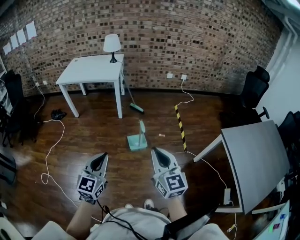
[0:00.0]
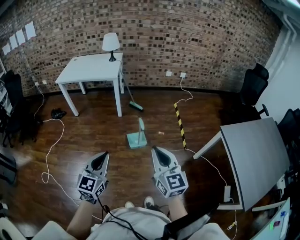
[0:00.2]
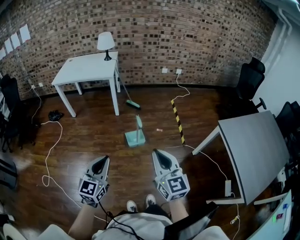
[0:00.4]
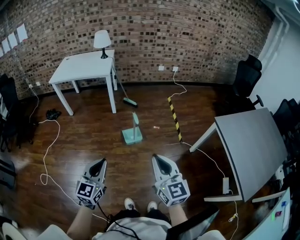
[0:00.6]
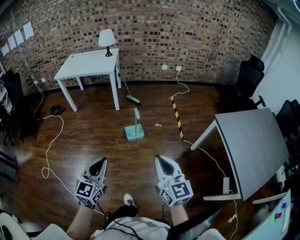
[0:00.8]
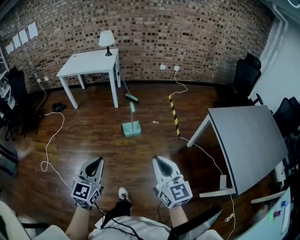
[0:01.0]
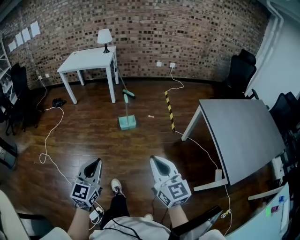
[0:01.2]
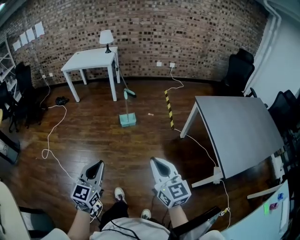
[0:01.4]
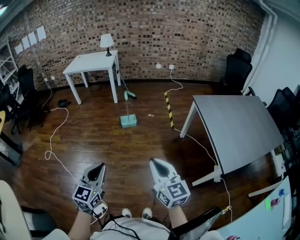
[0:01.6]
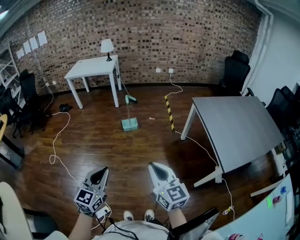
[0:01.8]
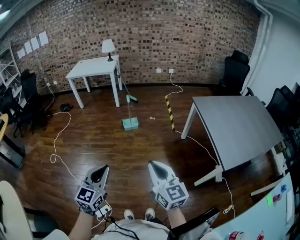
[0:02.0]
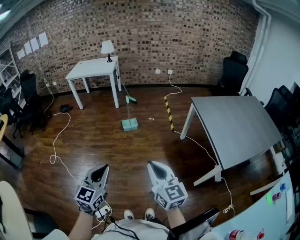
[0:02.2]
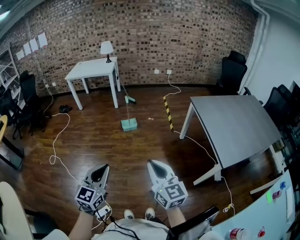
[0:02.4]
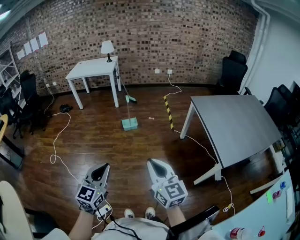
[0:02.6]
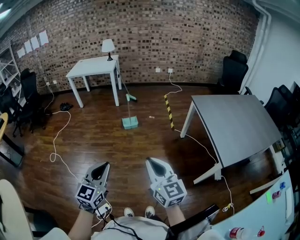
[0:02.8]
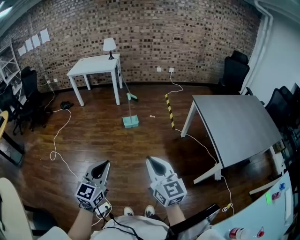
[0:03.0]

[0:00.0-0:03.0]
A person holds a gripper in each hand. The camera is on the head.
0:00.0 to 0:01.6: The two grippers travel together, backward and to the right, about 50 cm.
0:01.6 to 0:03.0: Both grippers move backward, approximately 5 cm.

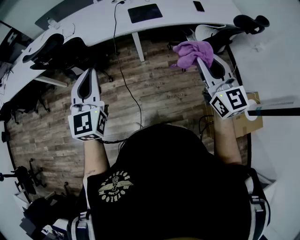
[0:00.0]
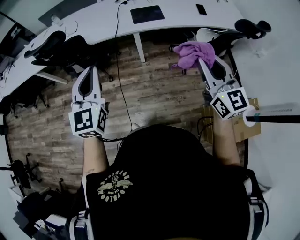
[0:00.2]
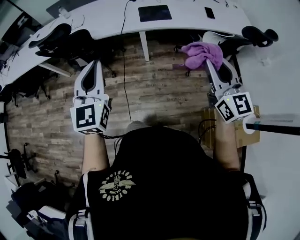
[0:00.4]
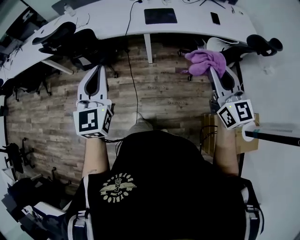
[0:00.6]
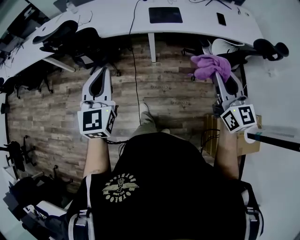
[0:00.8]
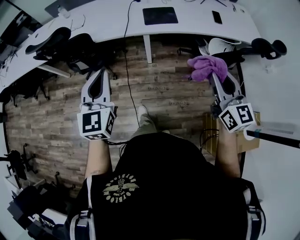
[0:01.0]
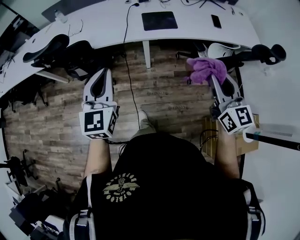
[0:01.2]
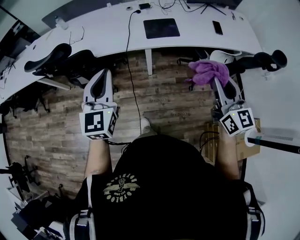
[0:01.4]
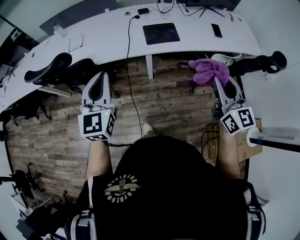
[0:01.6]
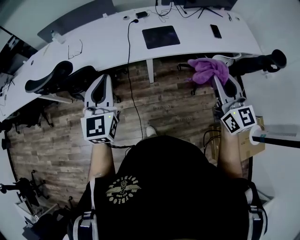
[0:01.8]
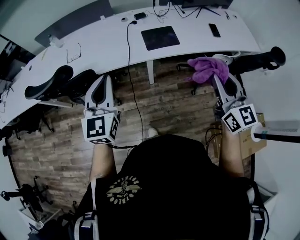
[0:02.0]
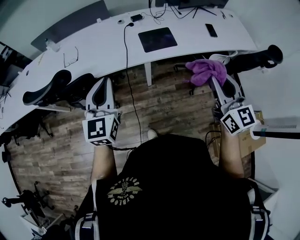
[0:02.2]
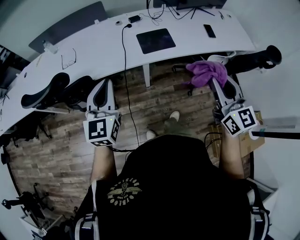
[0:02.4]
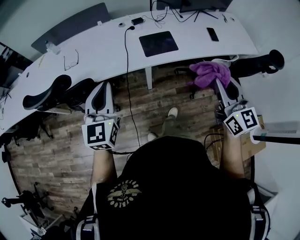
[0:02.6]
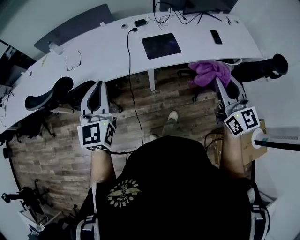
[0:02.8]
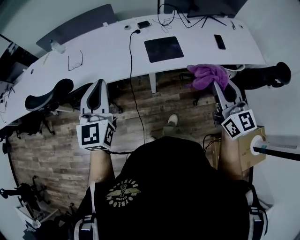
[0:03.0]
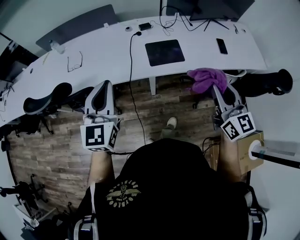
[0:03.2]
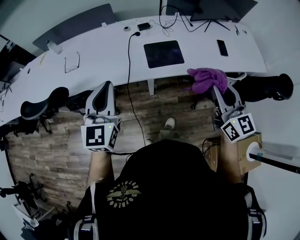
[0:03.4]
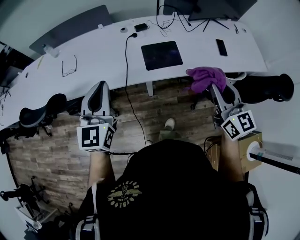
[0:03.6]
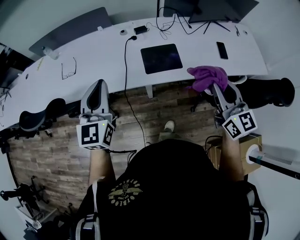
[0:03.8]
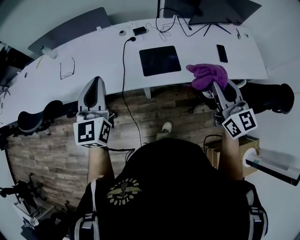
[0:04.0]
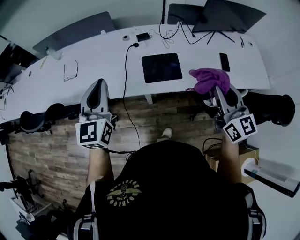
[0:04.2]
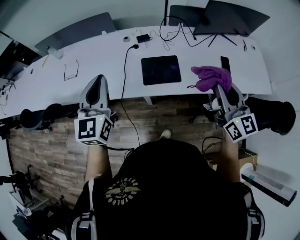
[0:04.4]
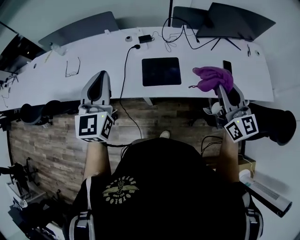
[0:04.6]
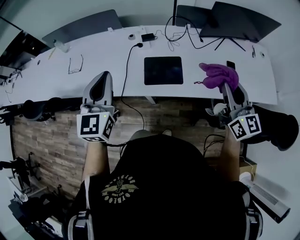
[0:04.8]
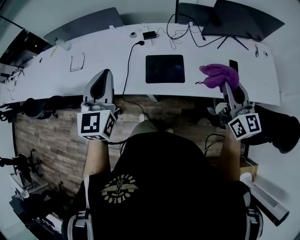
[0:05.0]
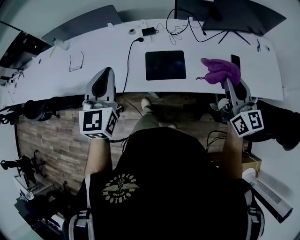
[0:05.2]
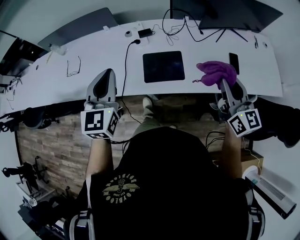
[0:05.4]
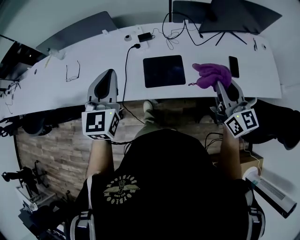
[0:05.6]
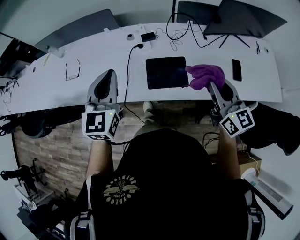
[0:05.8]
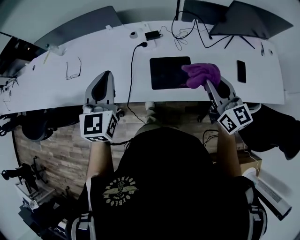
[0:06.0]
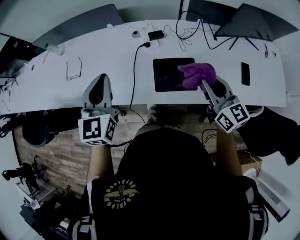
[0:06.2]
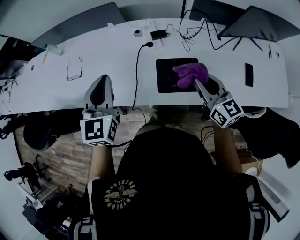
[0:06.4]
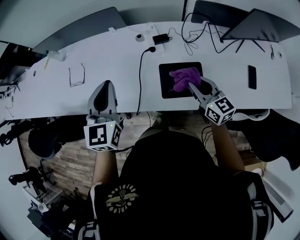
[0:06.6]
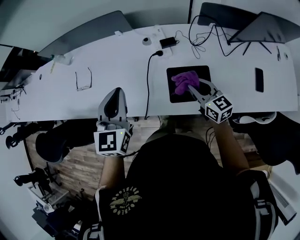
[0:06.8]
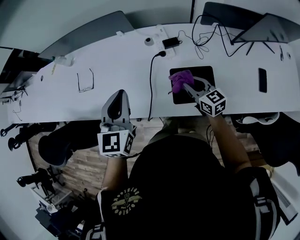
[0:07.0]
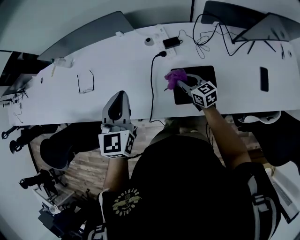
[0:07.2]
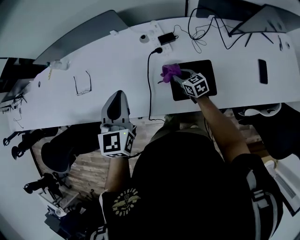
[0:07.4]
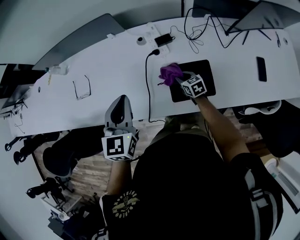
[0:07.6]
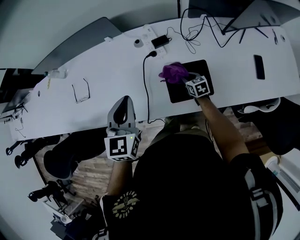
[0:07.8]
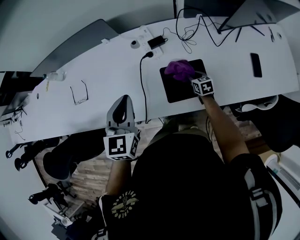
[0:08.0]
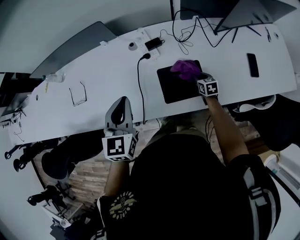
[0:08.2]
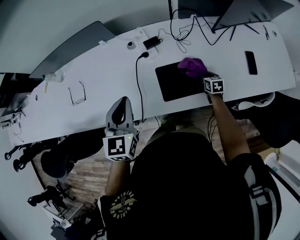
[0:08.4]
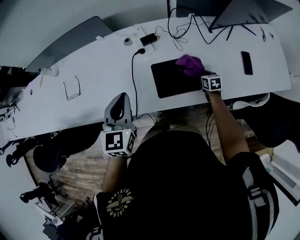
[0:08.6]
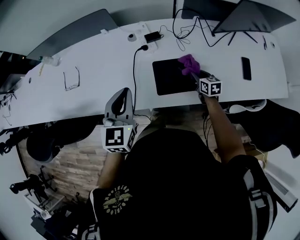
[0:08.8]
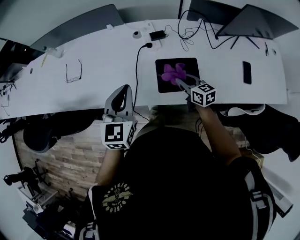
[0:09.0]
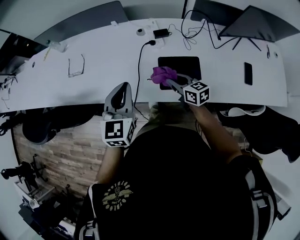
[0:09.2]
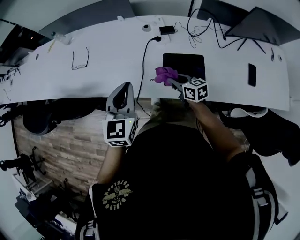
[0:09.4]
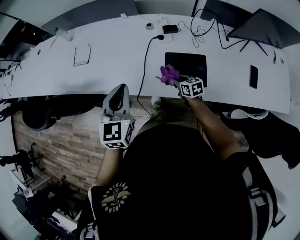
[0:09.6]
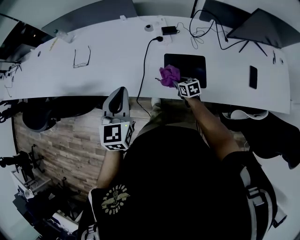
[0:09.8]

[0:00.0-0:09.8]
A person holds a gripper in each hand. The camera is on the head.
0:00.0 to 0:01.4: The grippers both shift forward by roughly 15 cm.
0:01.4 to 0:02.8: The two grippers go roughly 10 cm forward.
0:02.8 to 0:04.2: The grippers both shift forward and to the right by some 20 cm.
0:04.2 to 0:05.6: The right gripper shifts about 10 cm forward, to the right and downward. Meanwhile the left gripper travels to the right and forward by about 10 cm.
0:05.6 to 0:07.0: The right gripper goes approximately 40 cm downward, forward and to the left, and rotates approximately 30 degrees, while the left gripper shifts some 15 cm forward, to the left and downward.
0:07.0 to 0:08.4: The right gripper goes some 25 cm to the right and downward, and turns by approximately 40 degrees. The left gripper travels to the right by some 5 cm.
0:08.4 to 0:09.8: The right gripper goes some 20 cm to the left, and changes its angle by approximately 30 degrees, while the left gripper moves backward and to the left, some 10 cm.

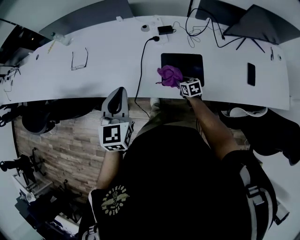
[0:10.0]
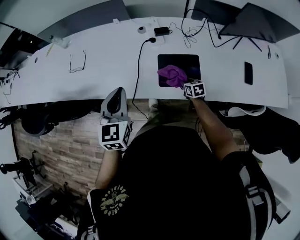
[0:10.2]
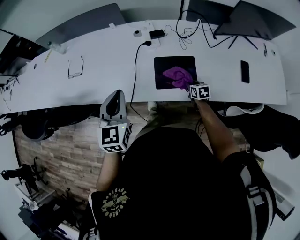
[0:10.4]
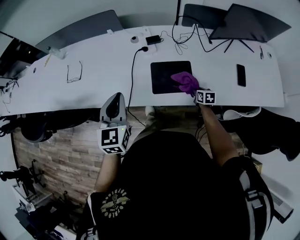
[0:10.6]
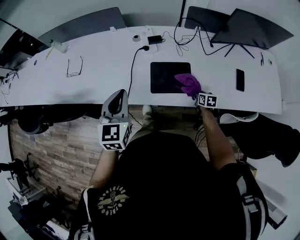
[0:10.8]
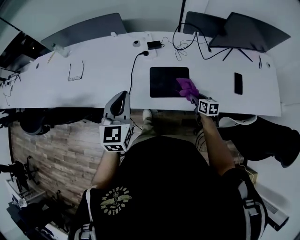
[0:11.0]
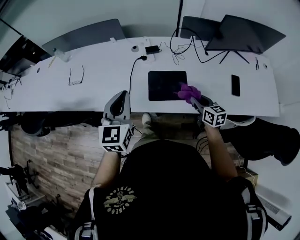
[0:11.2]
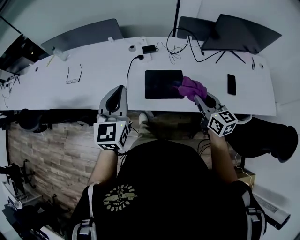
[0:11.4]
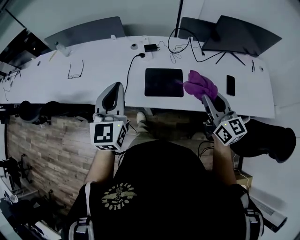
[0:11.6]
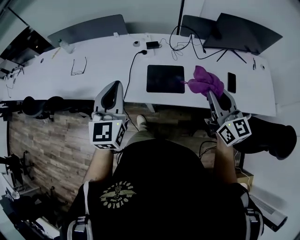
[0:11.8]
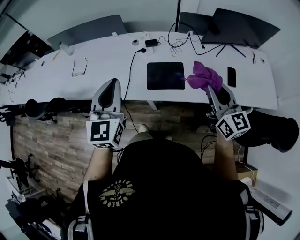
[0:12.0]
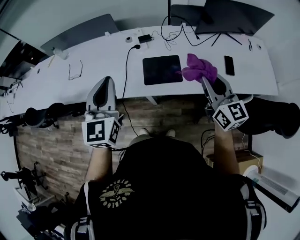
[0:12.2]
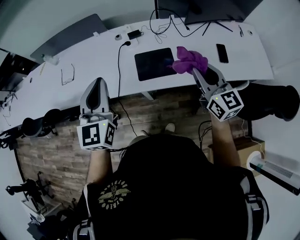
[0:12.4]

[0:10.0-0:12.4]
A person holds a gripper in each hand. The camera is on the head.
0:10.0 to 0:11.2: The left gripper is displaced to the right by about 10 cm. Meanwhile the right gripper goes some 25 cm upward, to the right and backward, and changes its angle by some 20 degrees.
0:11.2 to 0:12.4: The right gripper moves upward, about 25 cm, and swivels some 30 degrees; the left gripper shifts some 10 cm upward and backward.

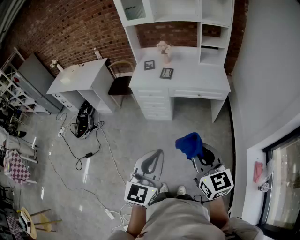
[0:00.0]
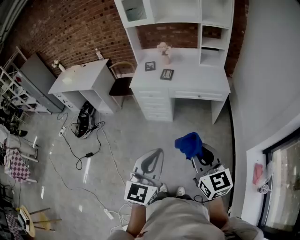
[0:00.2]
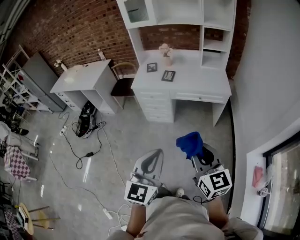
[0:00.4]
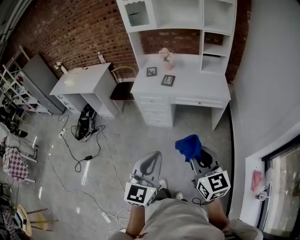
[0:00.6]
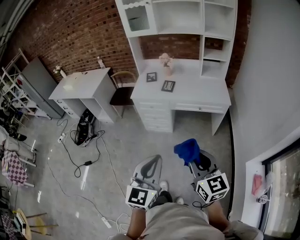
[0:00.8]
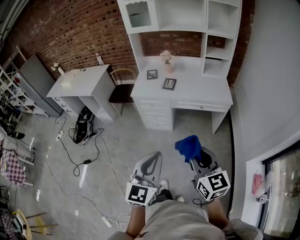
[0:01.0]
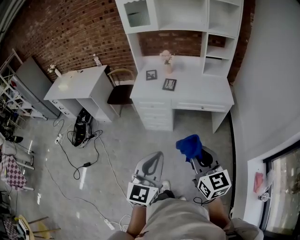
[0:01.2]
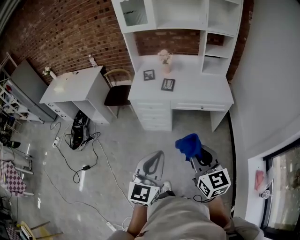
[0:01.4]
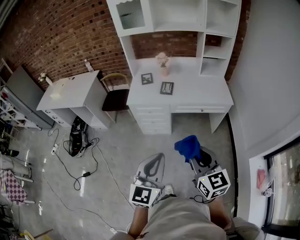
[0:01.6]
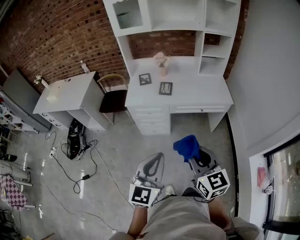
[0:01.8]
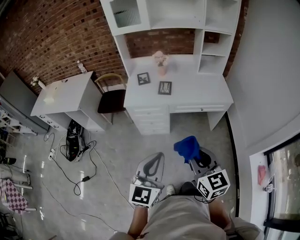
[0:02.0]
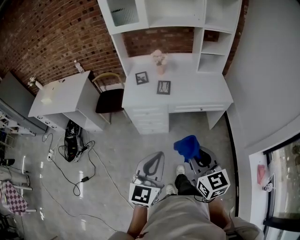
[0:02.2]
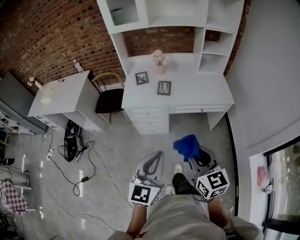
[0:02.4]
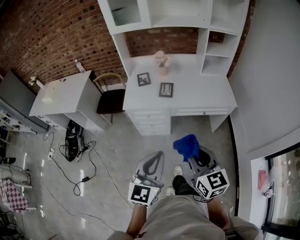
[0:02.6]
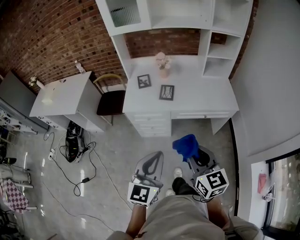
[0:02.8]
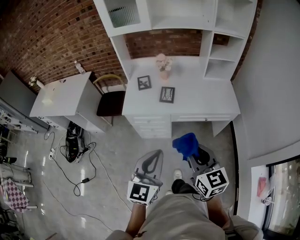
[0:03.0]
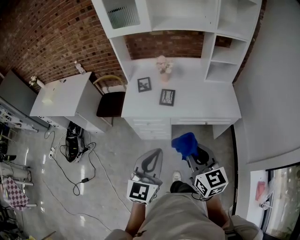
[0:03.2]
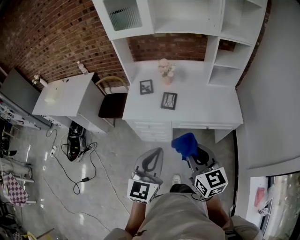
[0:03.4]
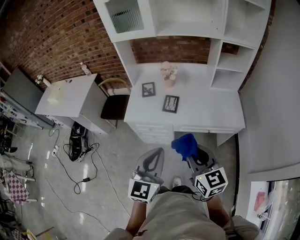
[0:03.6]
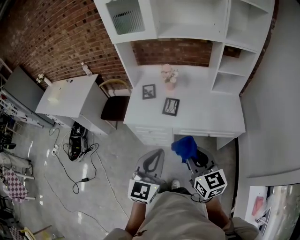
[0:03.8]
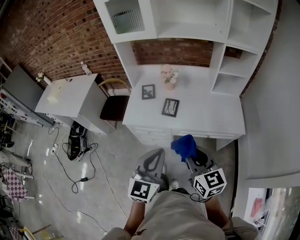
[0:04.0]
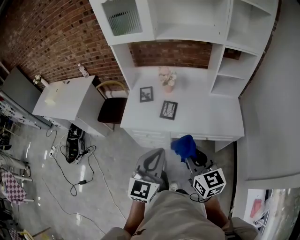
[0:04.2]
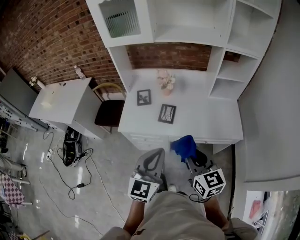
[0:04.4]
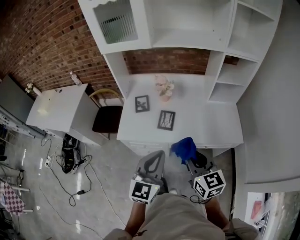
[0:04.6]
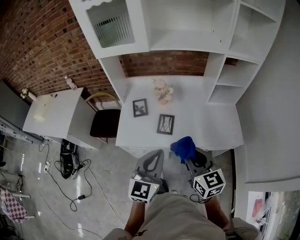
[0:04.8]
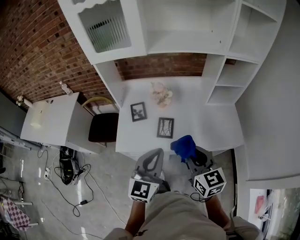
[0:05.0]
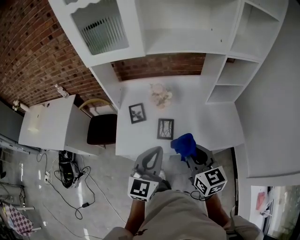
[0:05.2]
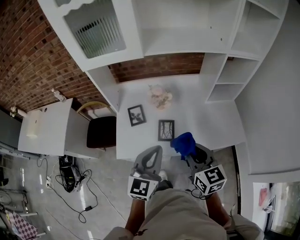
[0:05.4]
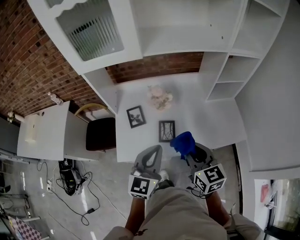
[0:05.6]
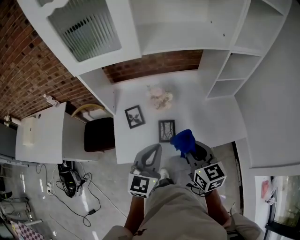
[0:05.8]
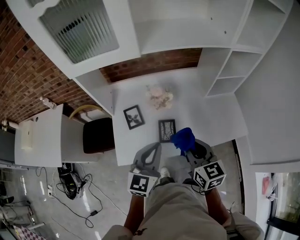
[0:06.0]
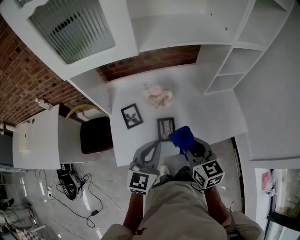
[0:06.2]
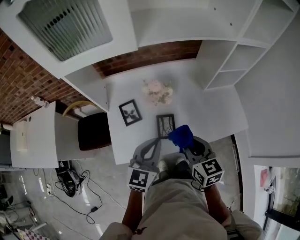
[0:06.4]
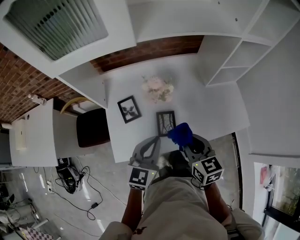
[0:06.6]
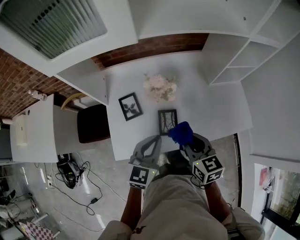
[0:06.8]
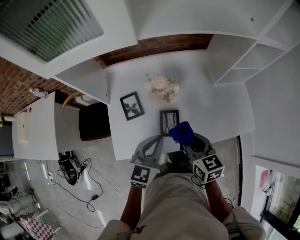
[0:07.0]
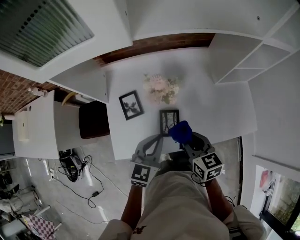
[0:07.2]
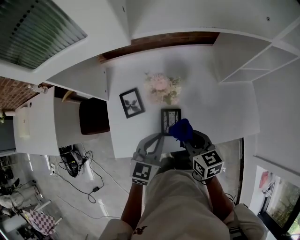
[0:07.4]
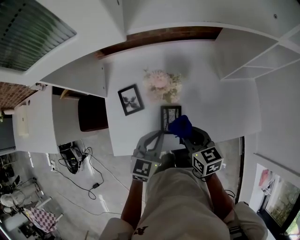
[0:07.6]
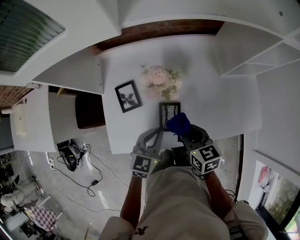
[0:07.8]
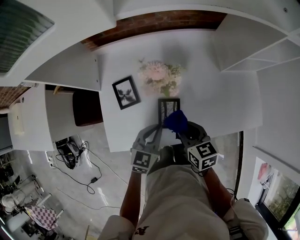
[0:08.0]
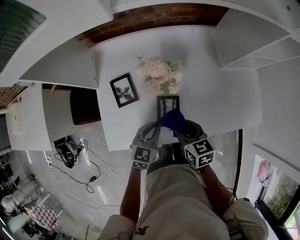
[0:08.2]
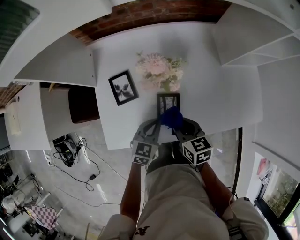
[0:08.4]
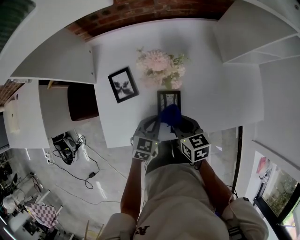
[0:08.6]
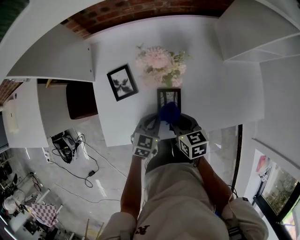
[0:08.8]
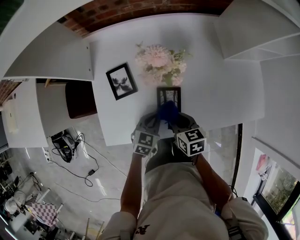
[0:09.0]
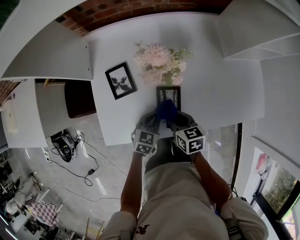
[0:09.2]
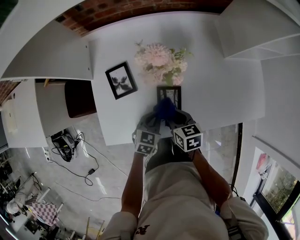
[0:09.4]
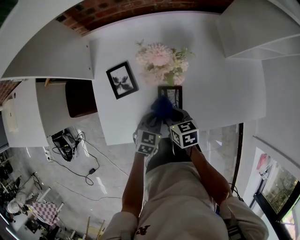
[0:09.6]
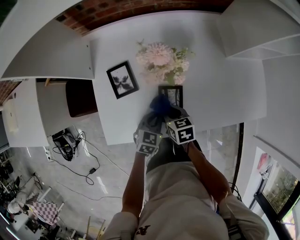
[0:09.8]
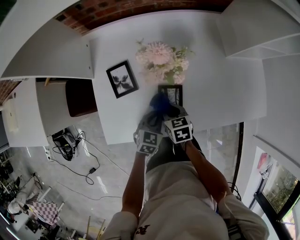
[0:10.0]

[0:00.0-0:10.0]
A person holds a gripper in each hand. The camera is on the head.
0:00.0 to 0:01.4: Both grippers move forward, roughly 10 cm.
0:01.4 to 0:02.8: Both grippers travel together forward, about 15 cm.
0:02.8 to 0:04.2: The grippers both shift forward by roughly 15 cm.
0:04.2 to 0:05.8: Both grippers travel together forward, some 25 cm.
0:05.8 to 0:07.2: The grippers both shift downward and forward by about 15 cm.
0:07.2 to 0:08.6: Both grippers travel together downward, approximately 15 cm.
0:08.6 to 0:10.0: The right gripper moves downward, some 10 cm.
